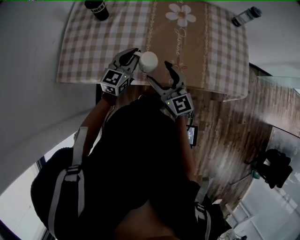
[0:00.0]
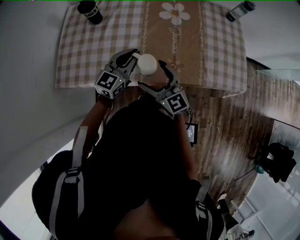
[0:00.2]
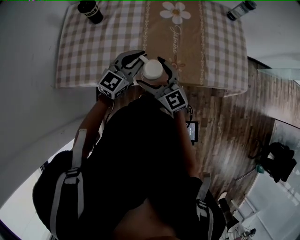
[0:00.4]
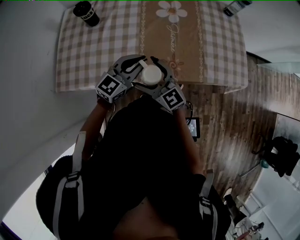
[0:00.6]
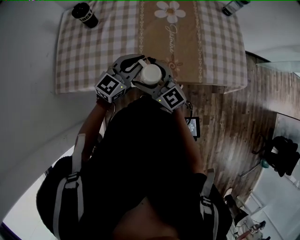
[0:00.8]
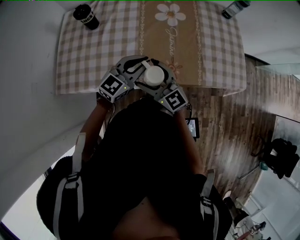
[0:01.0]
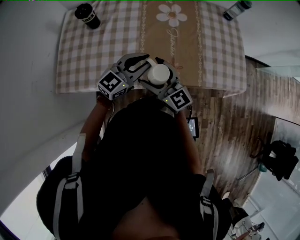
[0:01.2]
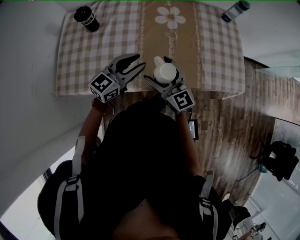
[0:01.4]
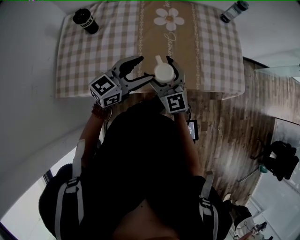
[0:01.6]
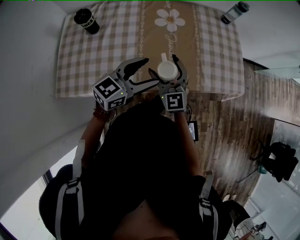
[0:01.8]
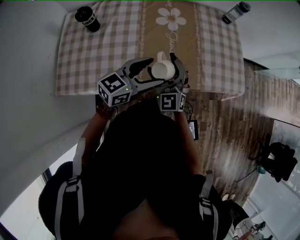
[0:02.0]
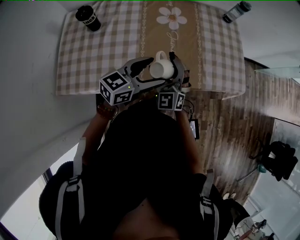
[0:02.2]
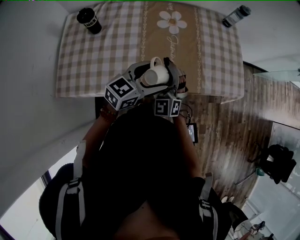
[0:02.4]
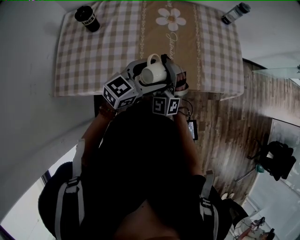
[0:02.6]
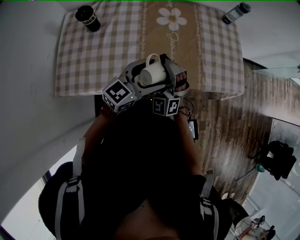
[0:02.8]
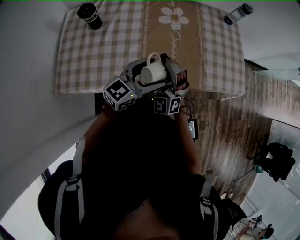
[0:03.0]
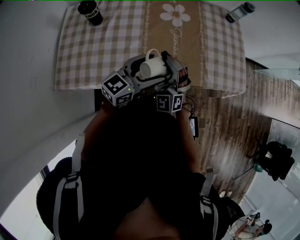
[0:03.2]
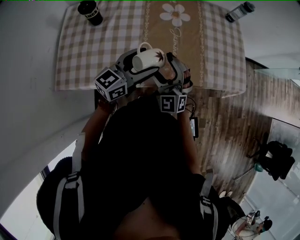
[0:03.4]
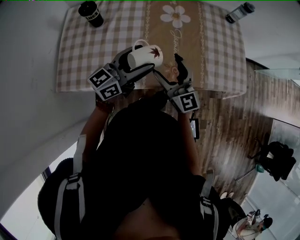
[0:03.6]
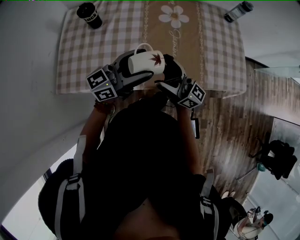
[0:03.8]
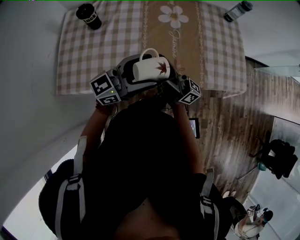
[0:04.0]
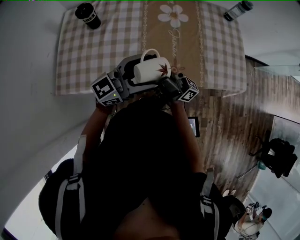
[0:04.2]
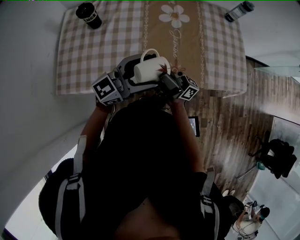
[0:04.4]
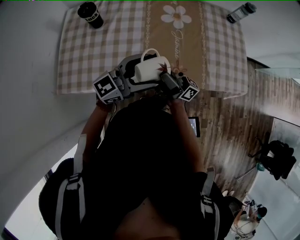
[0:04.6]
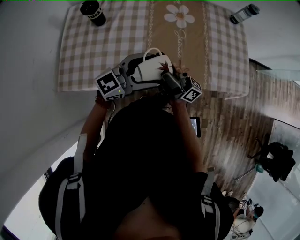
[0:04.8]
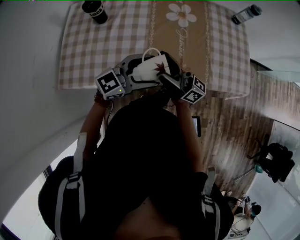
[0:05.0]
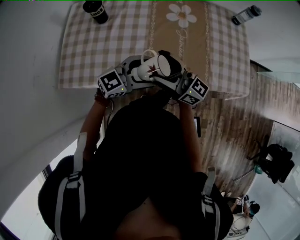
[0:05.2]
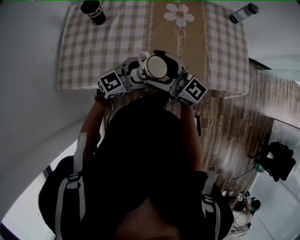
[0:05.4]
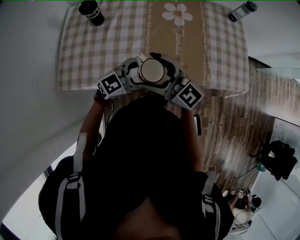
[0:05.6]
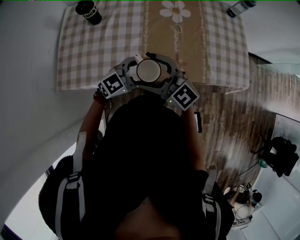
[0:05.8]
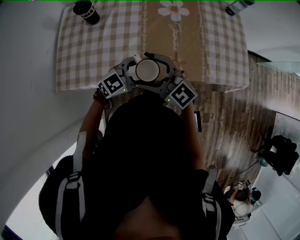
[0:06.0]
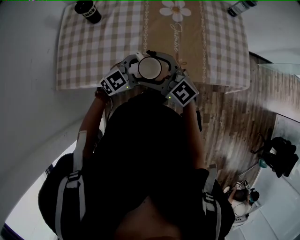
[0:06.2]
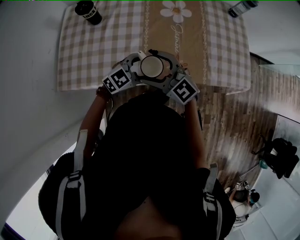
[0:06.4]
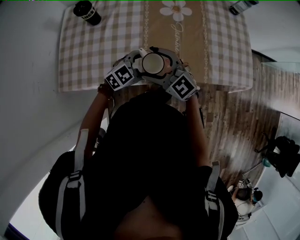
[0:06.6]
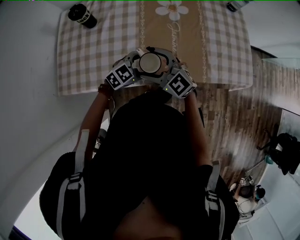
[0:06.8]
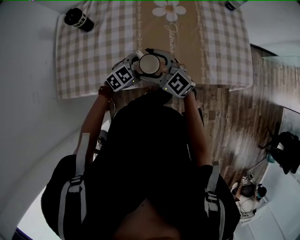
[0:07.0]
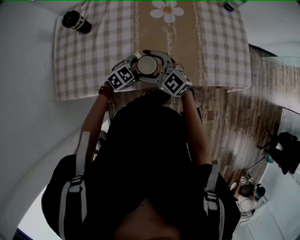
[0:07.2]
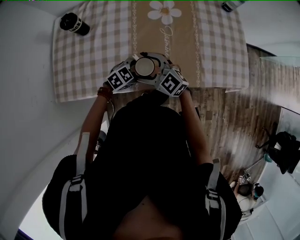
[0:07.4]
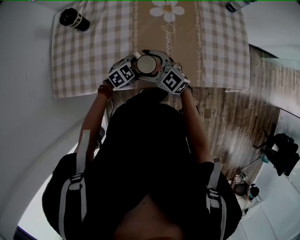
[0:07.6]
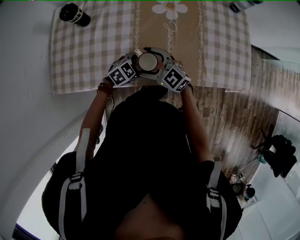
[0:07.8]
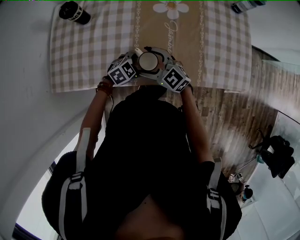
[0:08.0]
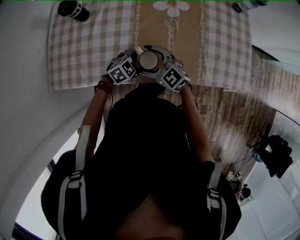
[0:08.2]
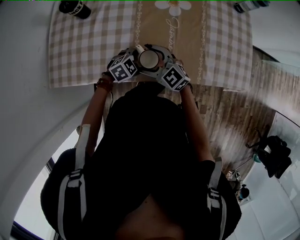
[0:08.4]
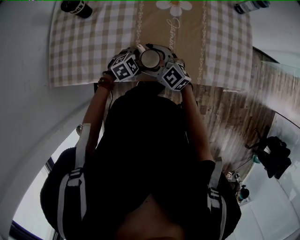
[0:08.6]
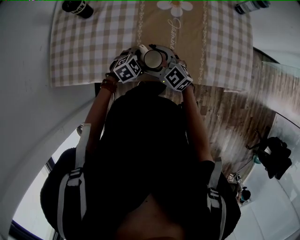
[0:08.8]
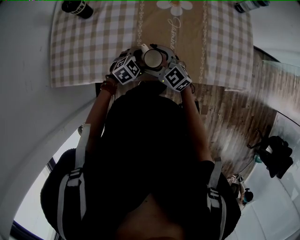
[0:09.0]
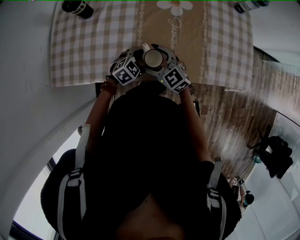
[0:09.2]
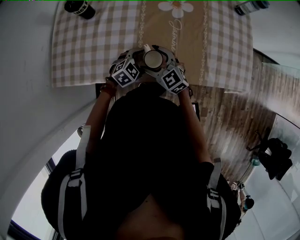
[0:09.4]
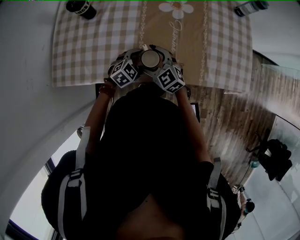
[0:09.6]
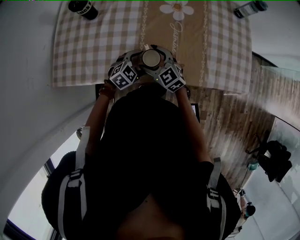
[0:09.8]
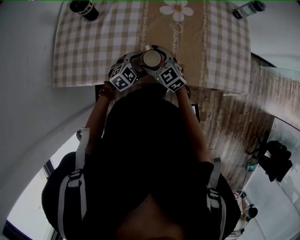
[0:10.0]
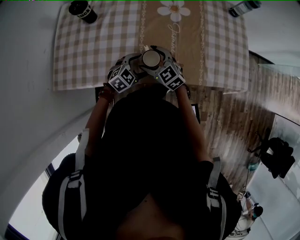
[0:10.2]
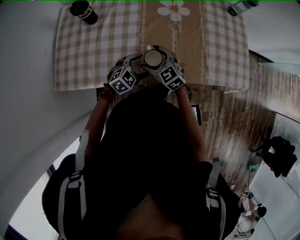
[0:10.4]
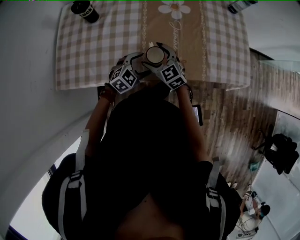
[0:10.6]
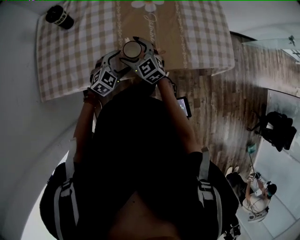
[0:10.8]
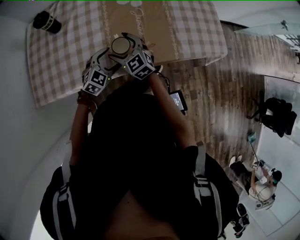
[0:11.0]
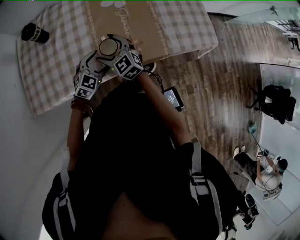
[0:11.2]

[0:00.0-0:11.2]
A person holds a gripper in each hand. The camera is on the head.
0:00.0 to 0:01.6: The left gripper shifts about 10 cm upward and to the right, changes its angle by roughly 30 degrees, and opens, while the right gripper shifts by approximately 5 cm.
0:01.6 to 0:03.2: The right gripper twists approximately 40 degrees counterclockwise, seen from behind.
0:03.2 to 0:04.8: The right gripper is displaced upward by roughly 5 cm, and rolls clockwise, seen from behind, by some 110 degrees.
0:04.8 to 0:06.4: The left gripper is displaced downward by about 10 cm, and rotates roughly 30 degrees; the right gripper changes place by approximately 5 cm, and tilts its fingers about 50 degrees downward.
0:06.4 to 0:08.0: Both grippers move downward, roughly 10 cm. The left gripper turns by roughly 20 degrees.
0:08.0 to 0:09.6: There are only small adjustments of the grippers.
0:09.6 to 0:11.2: The left gripper is displaced upward by approximately 5 cm.

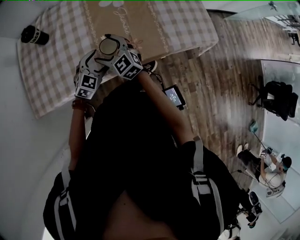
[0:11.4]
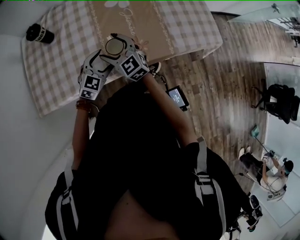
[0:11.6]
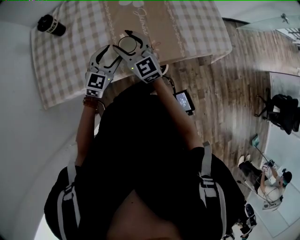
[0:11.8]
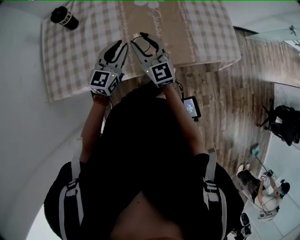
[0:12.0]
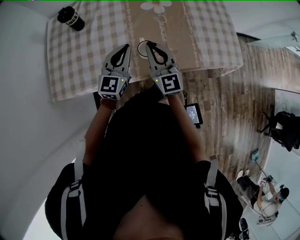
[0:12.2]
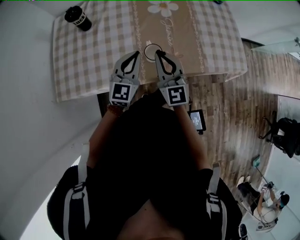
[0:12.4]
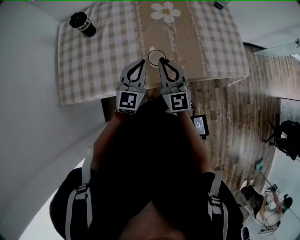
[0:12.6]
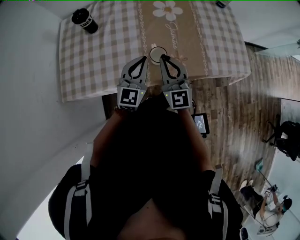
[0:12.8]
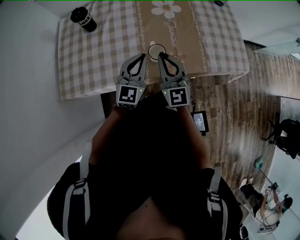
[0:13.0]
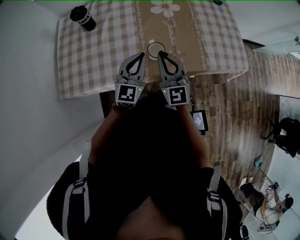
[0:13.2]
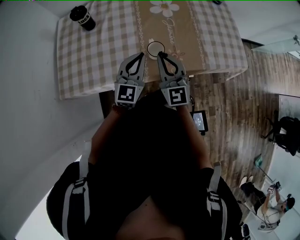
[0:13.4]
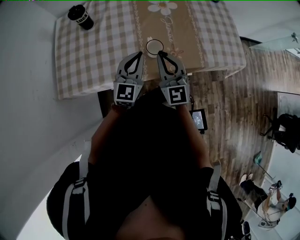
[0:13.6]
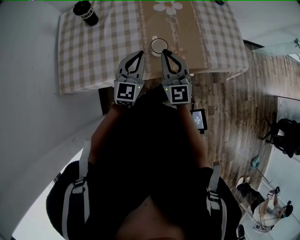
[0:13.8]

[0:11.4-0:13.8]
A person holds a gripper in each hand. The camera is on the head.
0:11.4 to 0:12.6: Both grippers move upward, some 10 cm. The right gripper turns by some 30 degrees, and closes, while the left gripper rotates some 30 degrees, and closes up.
0:12.6 to 0:13.8: The grippers make only small movements.

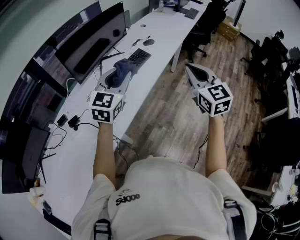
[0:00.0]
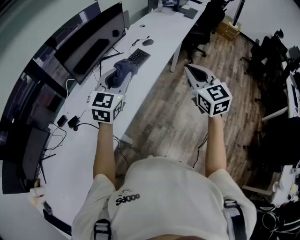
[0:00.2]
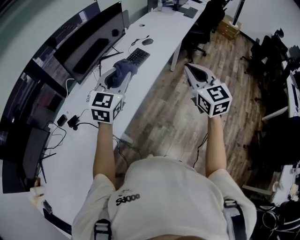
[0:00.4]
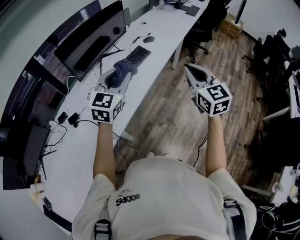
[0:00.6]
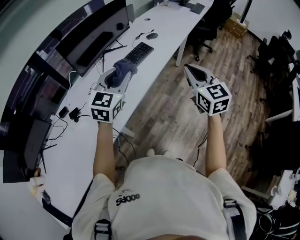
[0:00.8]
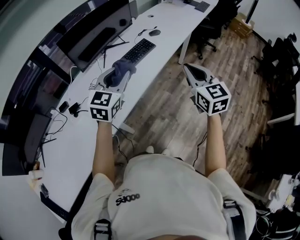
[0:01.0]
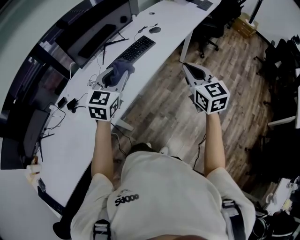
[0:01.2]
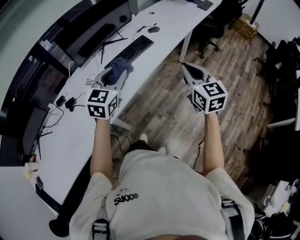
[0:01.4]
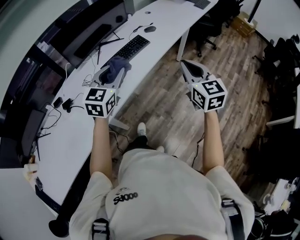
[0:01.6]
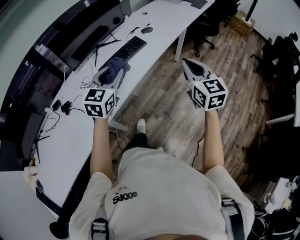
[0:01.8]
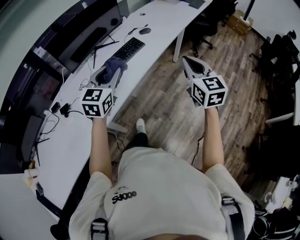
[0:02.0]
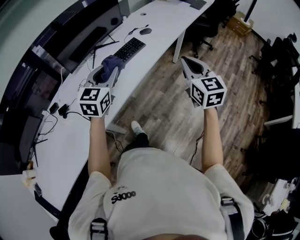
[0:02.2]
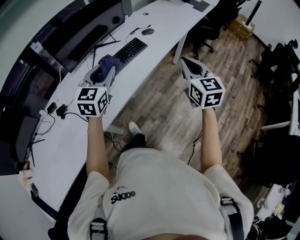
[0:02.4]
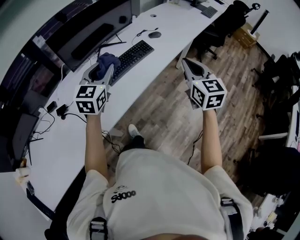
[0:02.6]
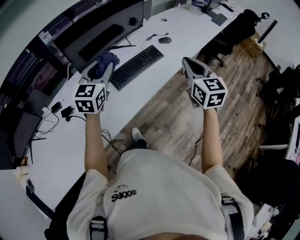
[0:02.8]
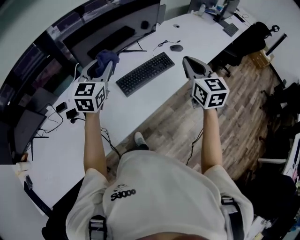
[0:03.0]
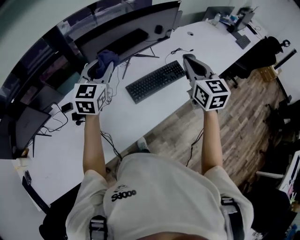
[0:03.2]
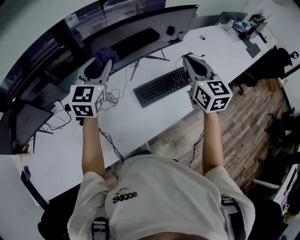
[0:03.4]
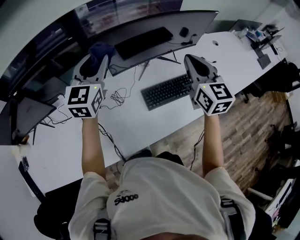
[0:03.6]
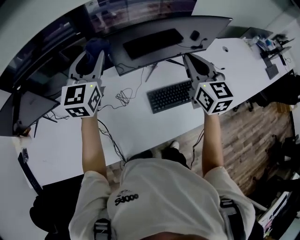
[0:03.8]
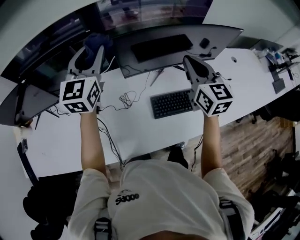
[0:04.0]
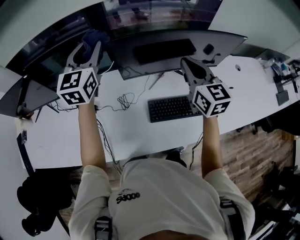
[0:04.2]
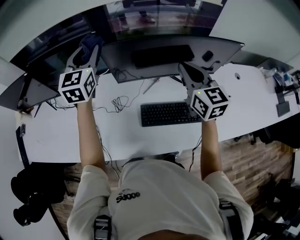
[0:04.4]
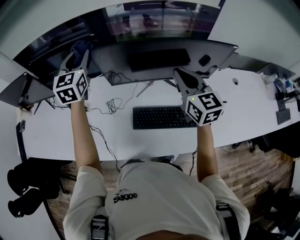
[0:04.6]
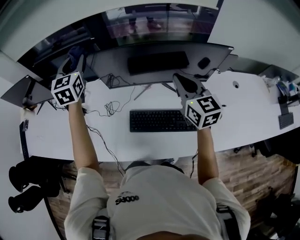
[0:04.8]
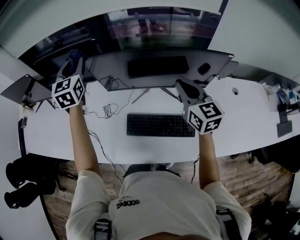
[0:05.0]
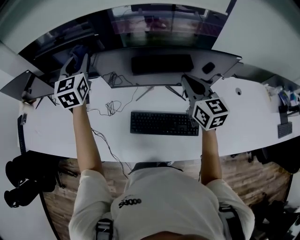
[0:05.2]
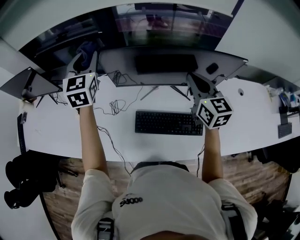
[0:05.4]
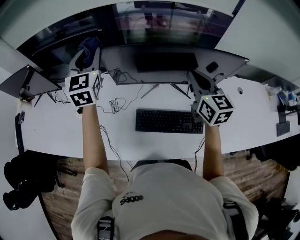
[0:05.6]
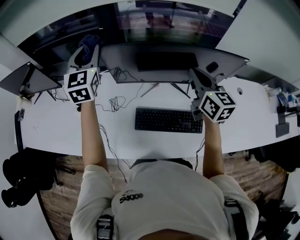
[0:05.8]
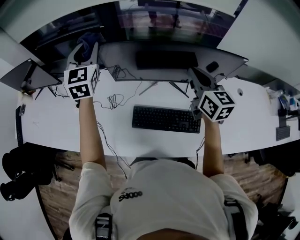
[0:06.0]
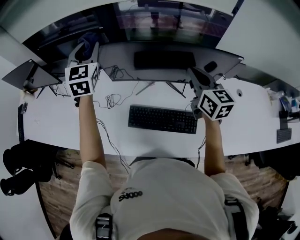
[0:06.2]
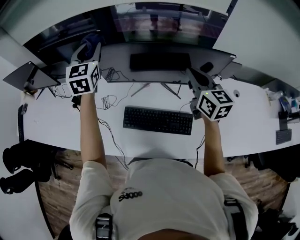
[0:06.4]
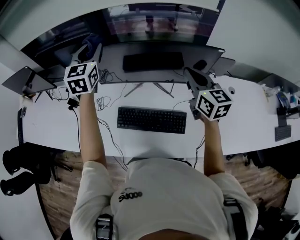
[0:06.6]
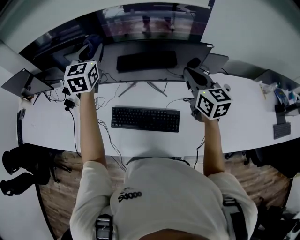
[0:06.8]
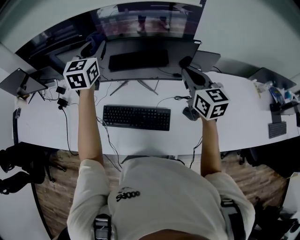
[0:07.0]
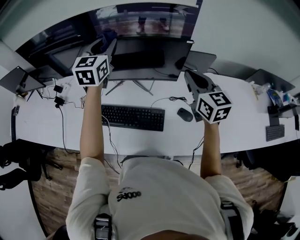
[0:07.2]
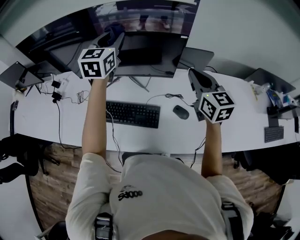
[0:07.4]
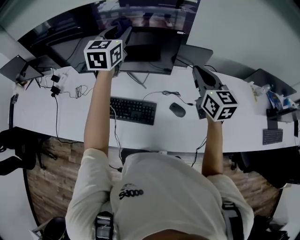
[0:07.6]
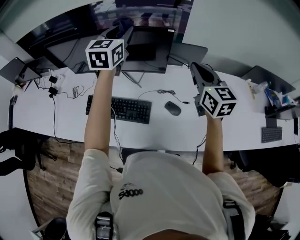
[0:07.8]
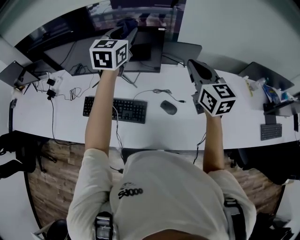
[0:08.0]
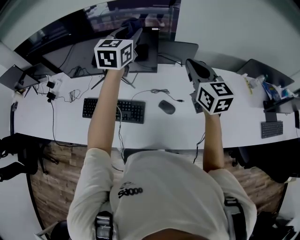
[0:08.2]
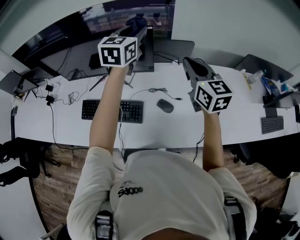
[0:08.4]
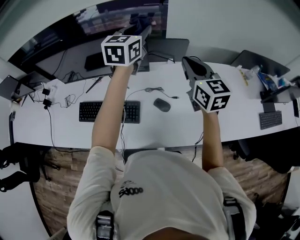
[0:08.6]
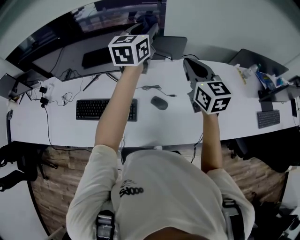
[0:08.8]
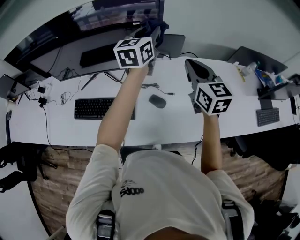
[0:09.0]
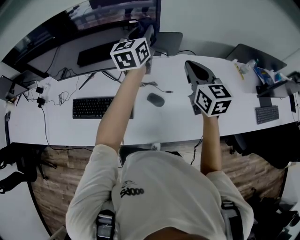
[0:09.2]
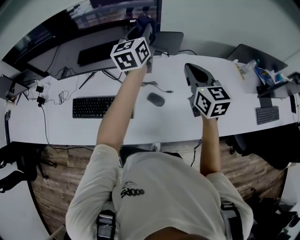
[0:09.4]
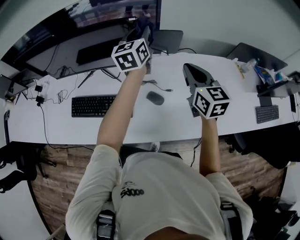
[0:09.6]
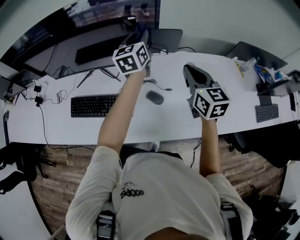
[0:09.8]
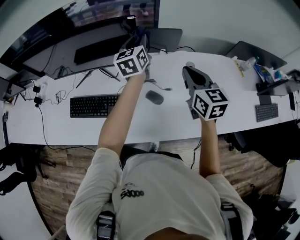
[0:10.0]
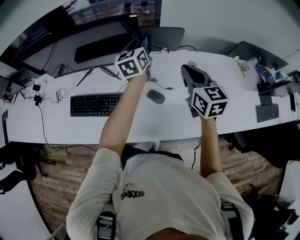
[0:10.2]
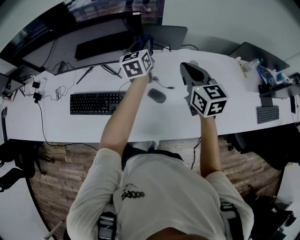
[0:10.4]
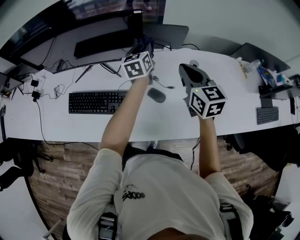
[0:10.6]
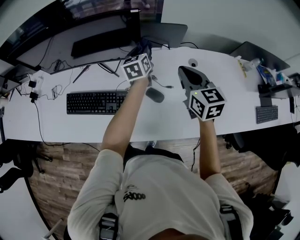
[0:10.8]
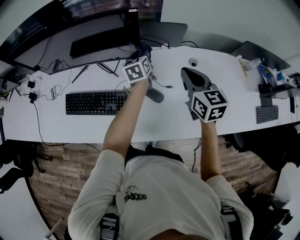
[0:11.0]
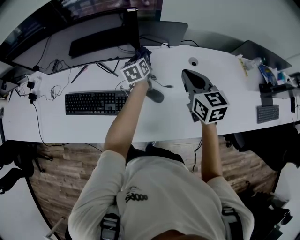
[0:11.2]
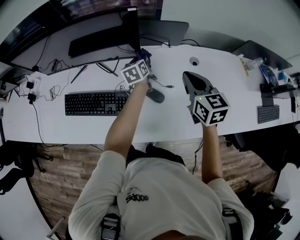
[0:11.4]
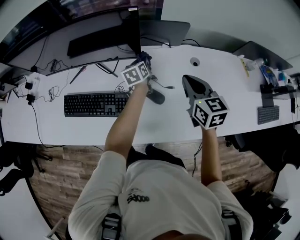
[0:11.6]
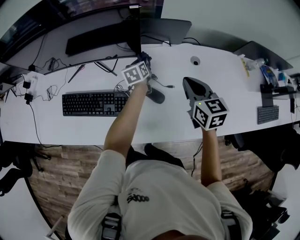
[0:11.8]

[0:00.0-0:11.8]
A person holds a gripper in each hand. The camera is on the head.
0:00.0 to 0:01.4: The right gripper shifts about 10 cm downward and to the right. Meanwhile the left gripper travels to the right and downward by some 5 cm.
0:01.4 to 0:03.0: Both grippers move forward and to the left, some 30 cm.
0:03.0 to 0:04.4: The right gripper ends up approximately 35 cm from where it was, and rotates some 40 degrees. The left gripper moves about 30 cm, and swivels roughly 40 degrees.
0:04.4 to 0:06.0: The right gripper travels to the right by some 10 cm.
0:06.0 to 0:07.4: The two grippers go some 30 cm to the right.
0:07.4 to 0:08.8: The left gripper goes roughly 30 cm to the right. Meanwhile the right gripper goes about 15 cm to the right.
0:08.8 to 0:10.4: The right gripper heads downward, covering about 5 cm. Meanwhile the left gripper goes approximately 15 cm downward, and swivels about 20 degrees.
0:10.4 to 0:11.8: The right gripper goes roughly 10 cm downward. The left gripper is displaced downward by about 20 cm, and swivels approximately 20 degrees.
